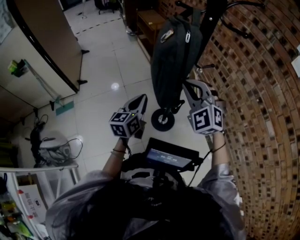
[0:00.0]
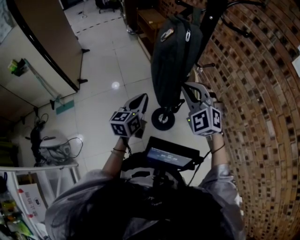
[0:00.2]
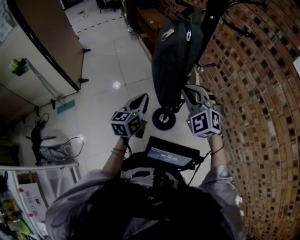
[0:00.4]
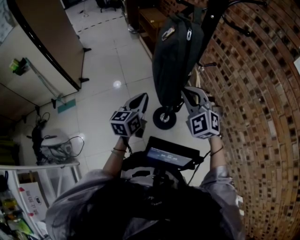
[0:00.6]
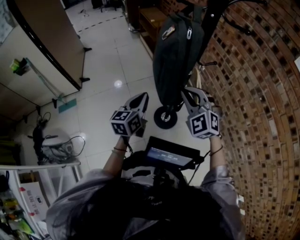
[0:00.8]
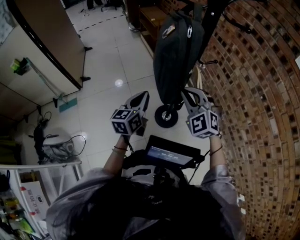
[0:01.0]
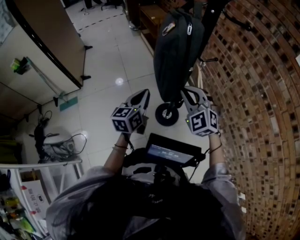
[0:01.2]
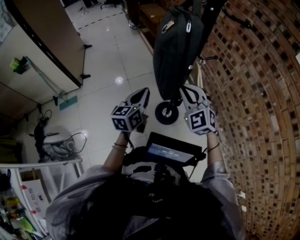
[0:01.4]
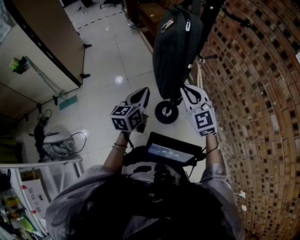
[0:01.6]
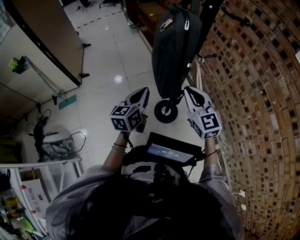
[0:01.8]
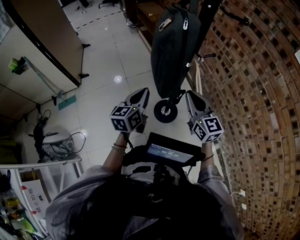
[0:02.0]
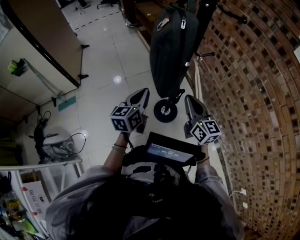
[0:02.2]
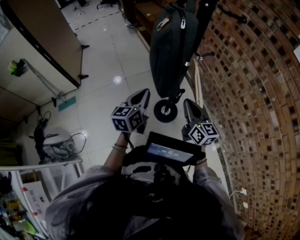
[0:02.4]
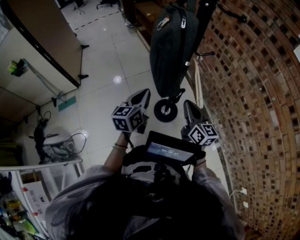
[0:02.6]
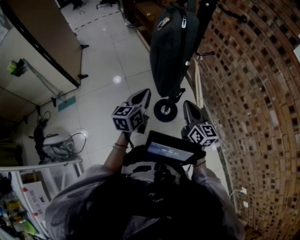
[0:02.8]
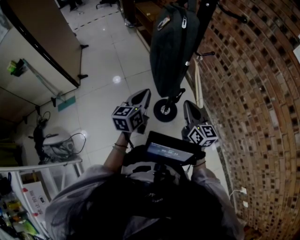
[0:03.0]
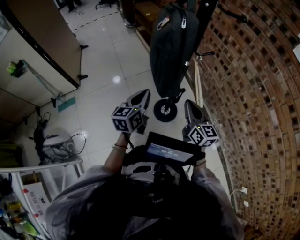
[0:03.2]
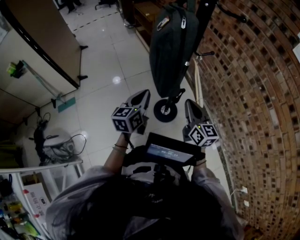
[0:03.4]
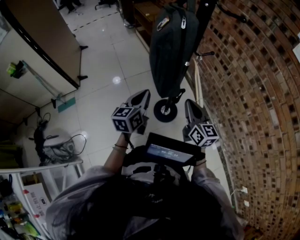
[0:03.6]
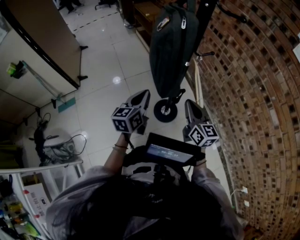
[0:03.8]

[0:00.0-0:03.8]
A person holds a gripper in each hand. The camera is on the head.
0:00.0 to 0:01.2: The right gripper travels downward by approximately 5 cm.
0:01.2 to 0:02.6: The right gripper is displaced downward and to the right by roughly 10 cm, and rolls clockwise, seen from behind, by some 70 degrees.
0:02.6 to 0:03.8: The grippers move only a little.

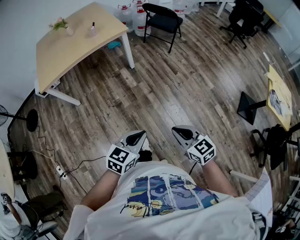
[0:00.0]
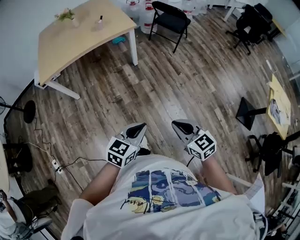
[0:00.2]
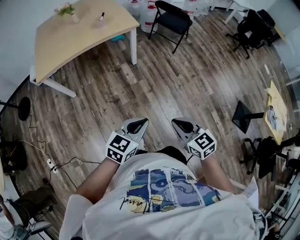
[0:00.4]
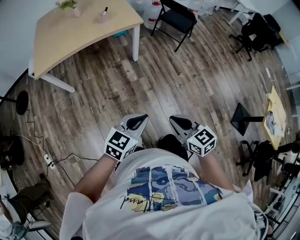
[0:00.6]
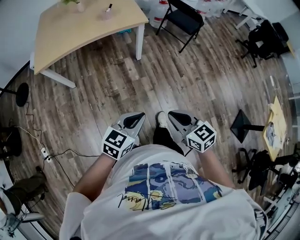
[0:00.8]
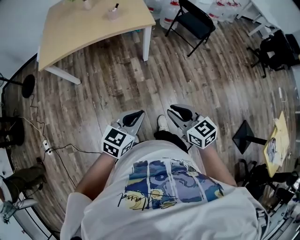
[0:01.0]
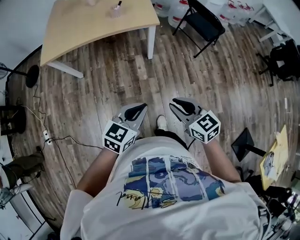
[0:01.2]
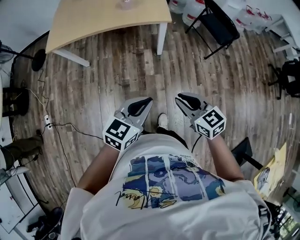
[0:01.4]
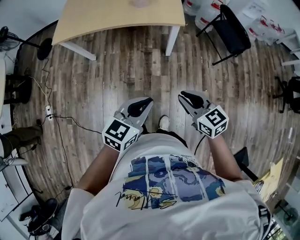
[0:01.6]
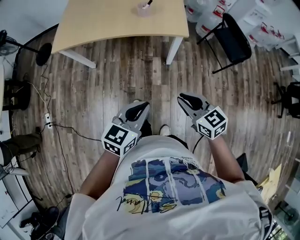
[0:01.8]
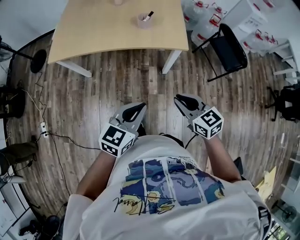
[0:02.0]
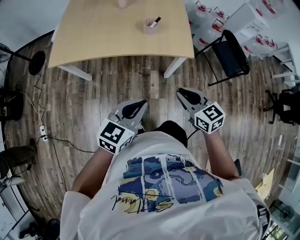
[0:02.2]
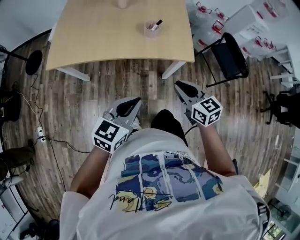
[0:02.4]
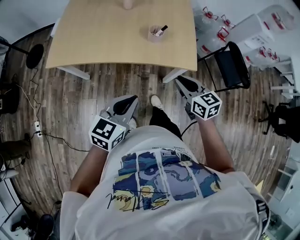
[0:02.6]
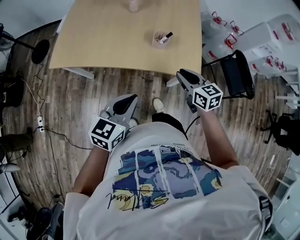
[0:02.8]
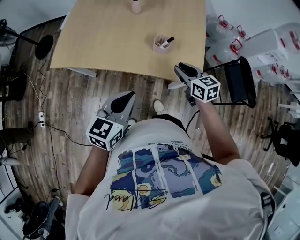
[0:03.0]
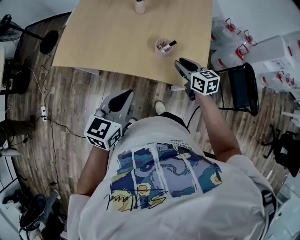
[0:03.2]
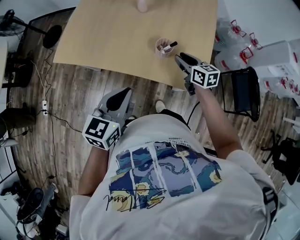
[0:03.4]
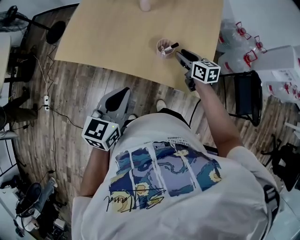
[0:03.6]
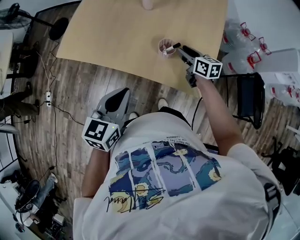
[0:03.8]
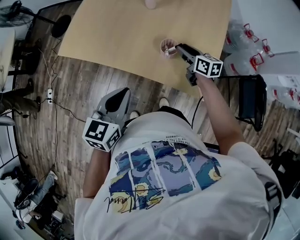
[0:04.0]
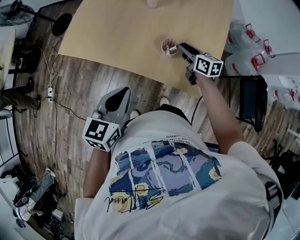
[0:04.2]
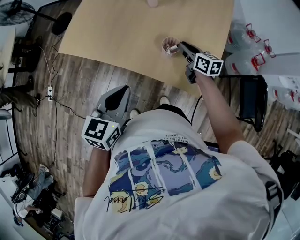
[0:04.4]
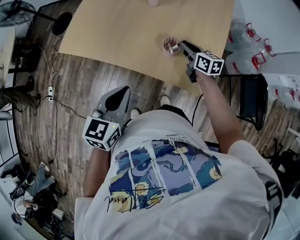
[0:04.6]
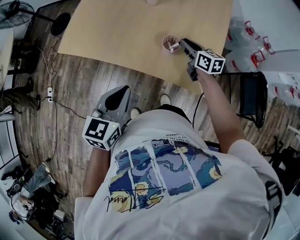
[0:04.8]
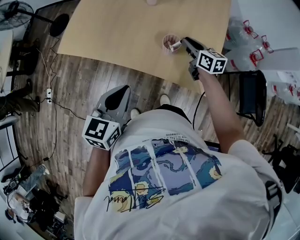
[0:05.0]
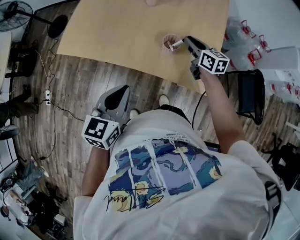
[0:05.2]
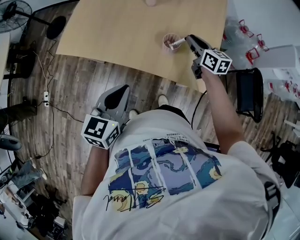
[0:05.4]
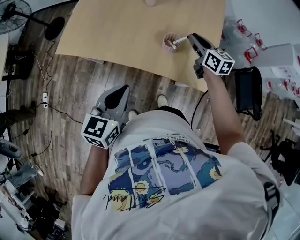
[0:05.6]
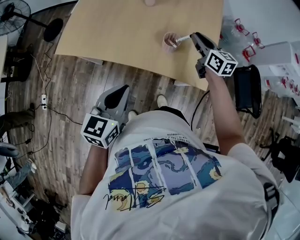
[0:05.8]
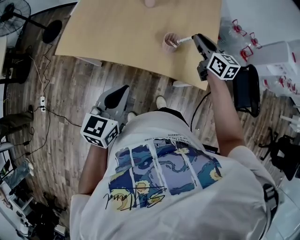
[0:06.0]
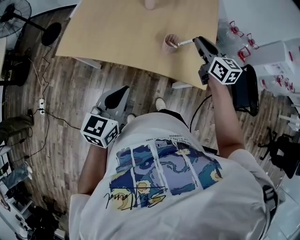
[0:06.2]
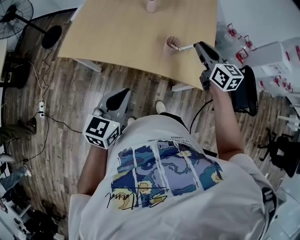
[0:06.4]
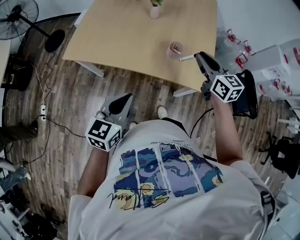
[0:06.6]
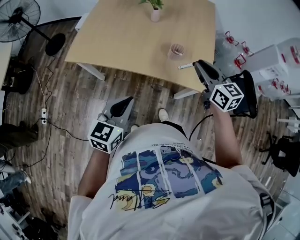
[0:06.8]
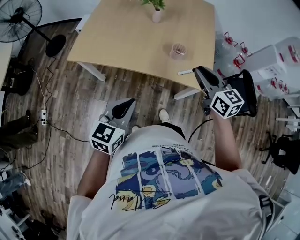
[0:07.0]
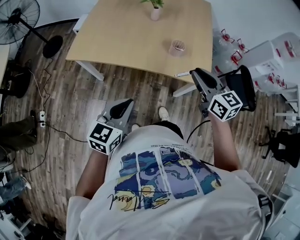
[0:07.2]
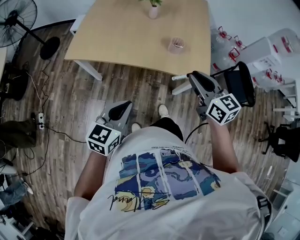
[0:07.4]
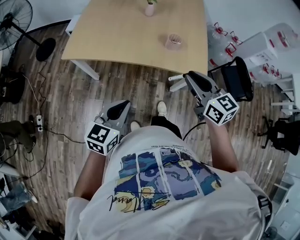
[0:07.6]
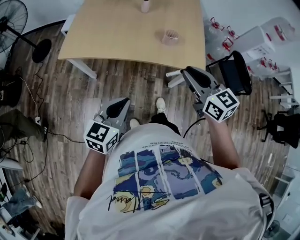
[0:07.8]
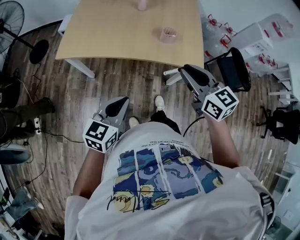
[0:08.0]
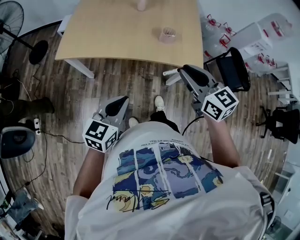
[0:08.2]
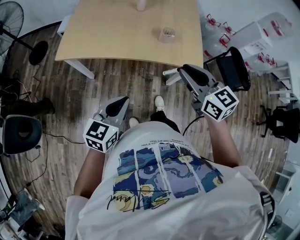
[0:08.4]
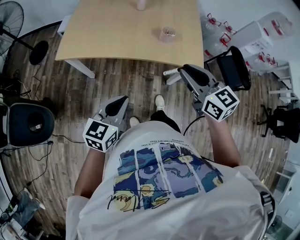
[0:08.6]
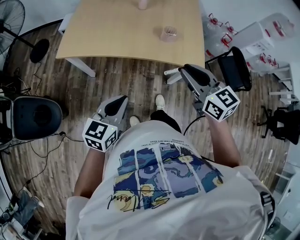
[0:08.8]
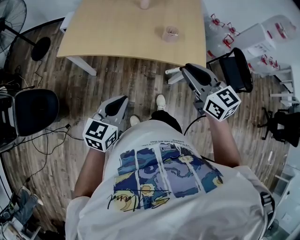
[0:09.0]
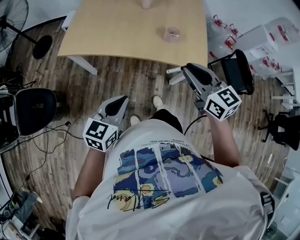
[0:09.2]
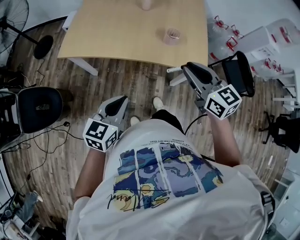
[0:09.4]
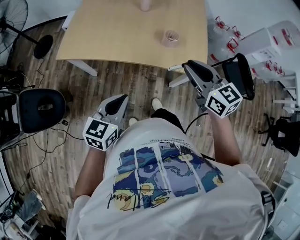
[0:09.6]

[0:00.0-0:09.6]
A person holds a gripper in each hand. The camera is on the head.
0:00.0 to 0:01.6: The right gripper changes place by roughly 40 cm, and changes its angle by some 30 degrees, while the left gripper ends up roughly 40 cm from where it was, and changes its angle by about 30 degrees.
0:01.6 to 0:03.2: The pair of grippers is taken forward, some 50 cm. The left gripper swivels approximately 20 degrees.
0:03.2 to 0:04.8: The right gripper is displaced forward by some 10 cm.
0:04.8 to 0:06.4: The left gripper is displaced to the left and backward by about 10 cm. The right gripper goes about 20 cm upward and backward, and turns by roughly 20 degrees.
0:06.4 to 0:08.0: The right gripper heads backward and to the left, covering approximately 25 cm. The left gripper is displaced backward and to the left by approximately 15 cm.
0:08.0 to 0:09.6: The grippers both shift forward by approximately 5 cm.

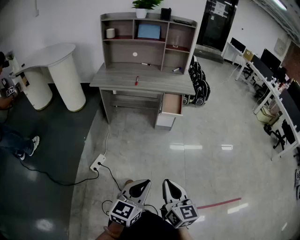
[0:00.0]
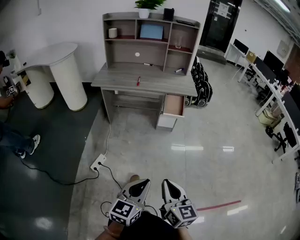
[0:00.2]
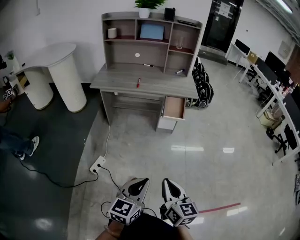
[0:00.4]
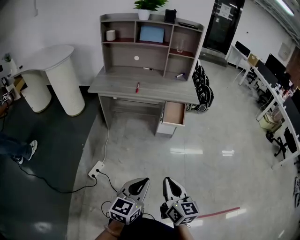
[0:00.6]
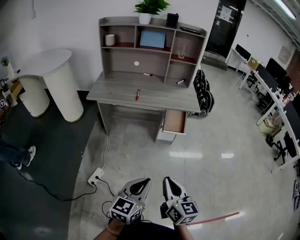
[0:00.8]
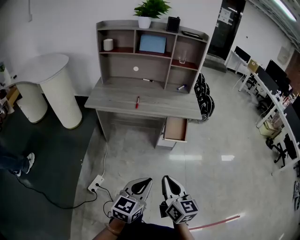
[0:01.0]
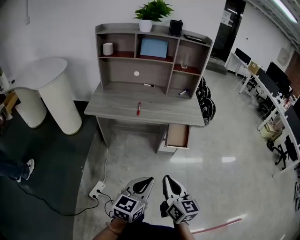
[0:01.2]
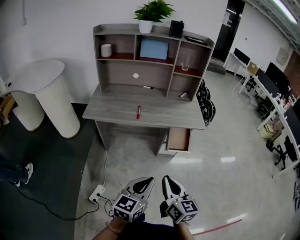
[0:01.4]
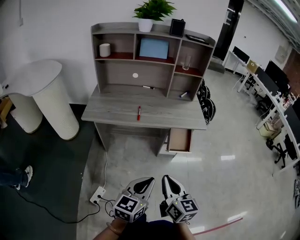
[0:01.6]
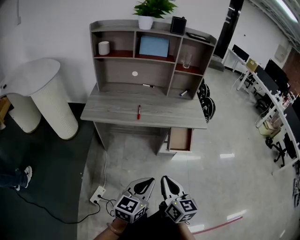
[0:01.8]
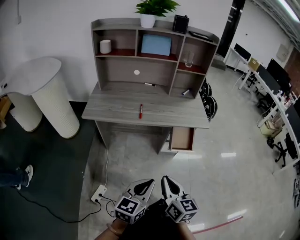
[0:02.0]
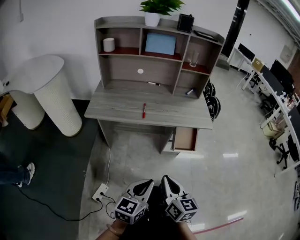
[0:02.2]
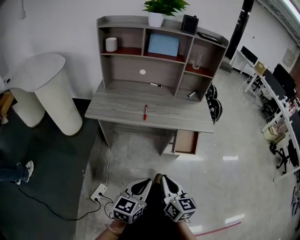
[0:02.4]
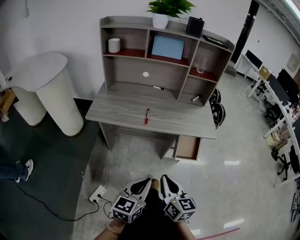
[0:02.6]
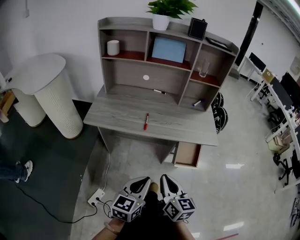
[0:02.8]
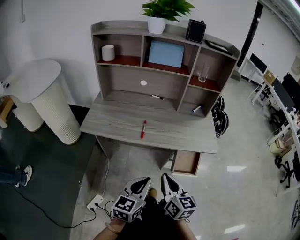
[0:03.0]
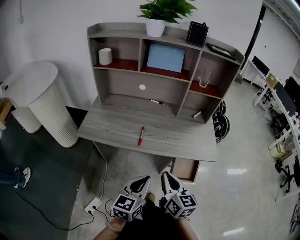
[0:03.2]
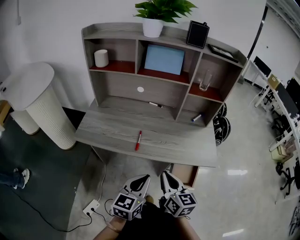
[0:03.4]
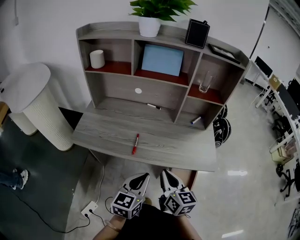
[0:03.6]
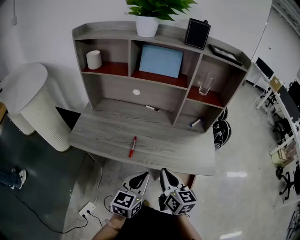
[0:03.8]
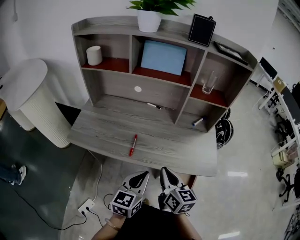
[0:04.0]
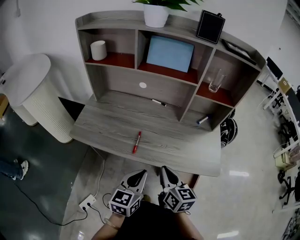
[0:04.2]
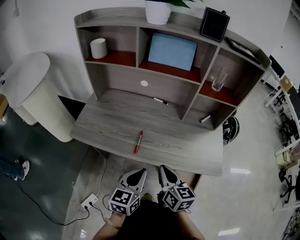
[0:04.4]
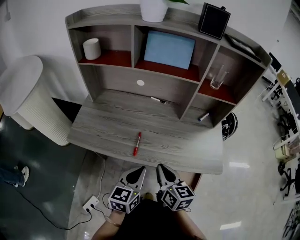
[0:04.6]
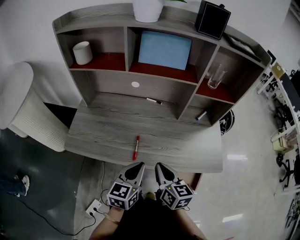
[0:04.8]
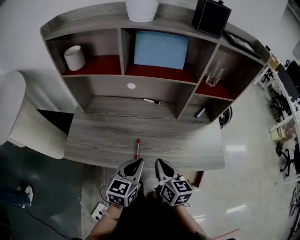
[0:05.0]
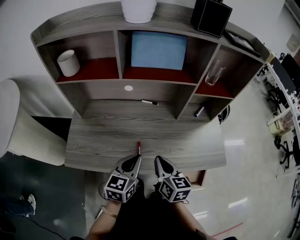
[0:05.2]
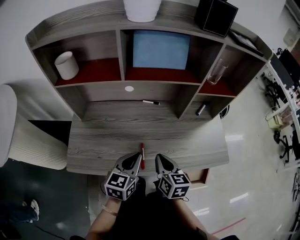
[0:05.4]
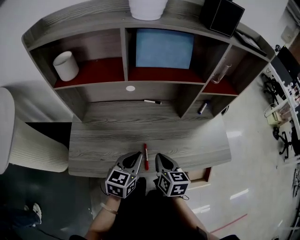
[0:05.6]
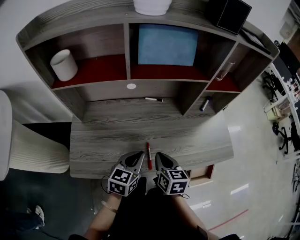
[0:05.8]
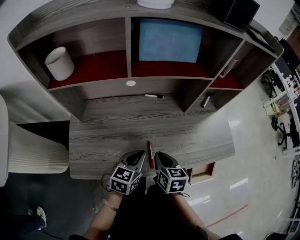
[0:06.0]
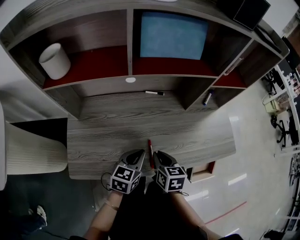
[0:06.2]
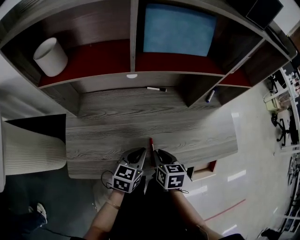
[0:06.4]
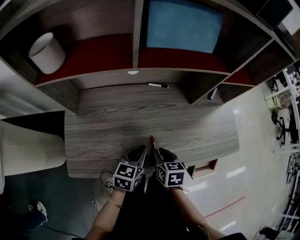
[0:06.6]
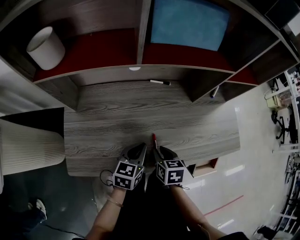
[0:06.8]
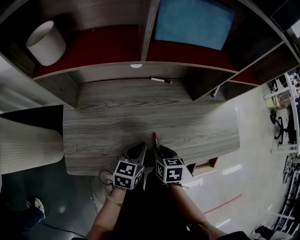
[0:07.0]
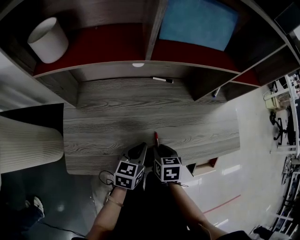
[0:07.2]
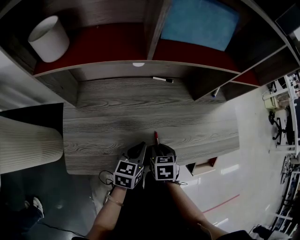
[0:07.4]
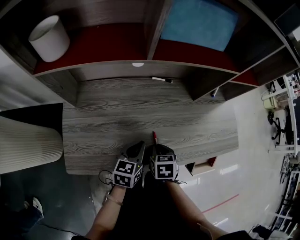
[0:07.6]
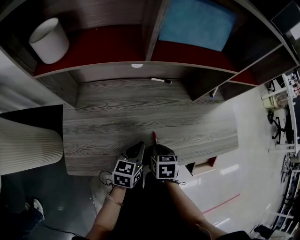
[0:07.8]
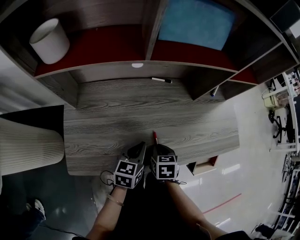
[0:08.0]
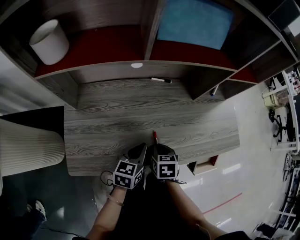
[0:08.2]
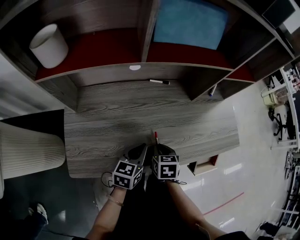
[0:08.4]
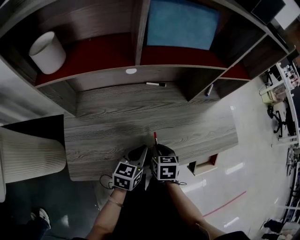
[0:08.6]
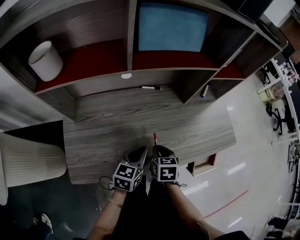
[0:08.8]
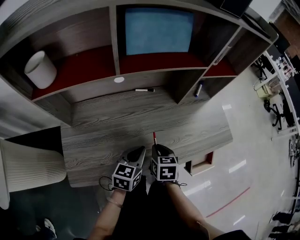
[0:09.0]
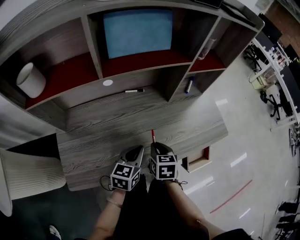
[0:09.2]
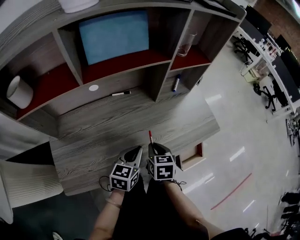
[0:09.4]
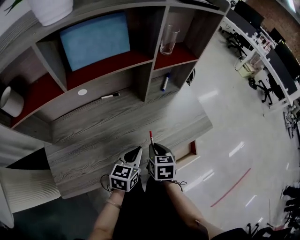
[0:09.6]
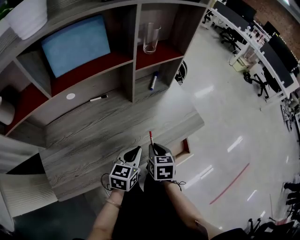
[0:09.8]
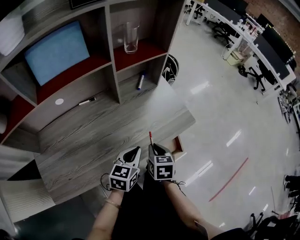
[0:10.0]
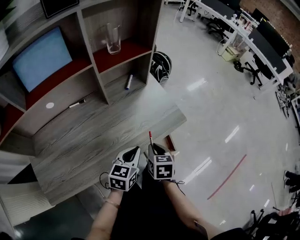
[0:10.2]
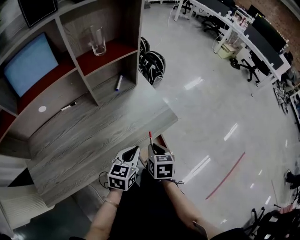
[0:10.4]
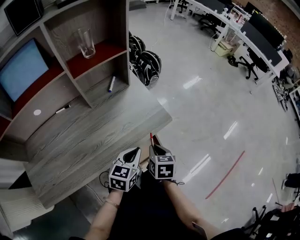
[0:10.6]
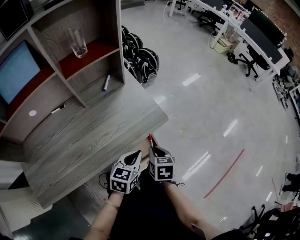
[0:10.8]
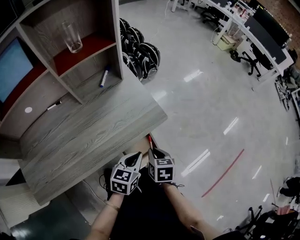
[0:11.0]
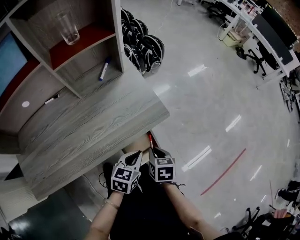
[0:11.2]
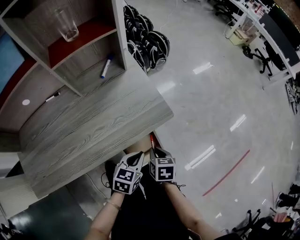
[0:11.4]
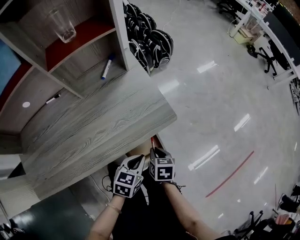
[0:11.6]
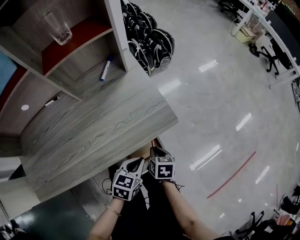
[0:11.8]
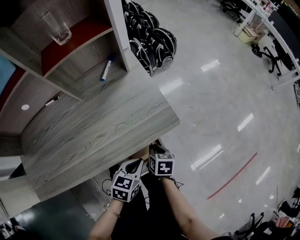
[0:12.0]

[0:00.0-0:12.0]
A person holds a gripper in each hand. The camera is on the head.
0:00.0 to 0:01.6: Both grippers travel together forward, some 35 cm.
0:01.6 to 0:03.0: Both grippers move forward, roughly 15 cm.
0:03.0 to 0:04.4: The grippers both shift forward by approximately 20 cm.
0:04.4 to 0:06.0: The left gripper goes about 20 cm forward and to the left, and swivels approximately 30 degrees. The right gripper travels forward, to the left and downward by some 20 cm, and changes its angle by approximately 30 degrees.
0:06.0 to 0:07.6: The grippers both shift downward by some 10 cm. The right gripper changes its angle by some 20 degrees.
0:07.6 to 0:09.0: The right gripper is displaced upward by roughly 5 cm, while the left gripper changes place by approximately 5 cm.
0:09.0 to 0:10.4: Both grippers travel together to the right, some 30 cm. The right gripper changes its angle by some 20 degrees.
0:10.4 to 0:12.0: The right gripper travels downward by approximately 15 cm, while the left gripper travels downward and to the right by roughly 15 cm.
